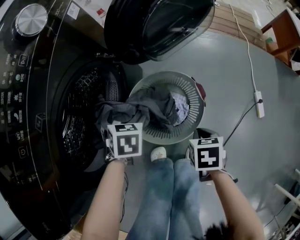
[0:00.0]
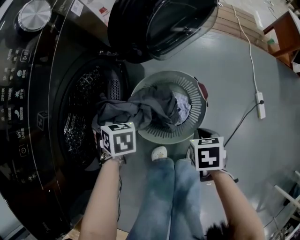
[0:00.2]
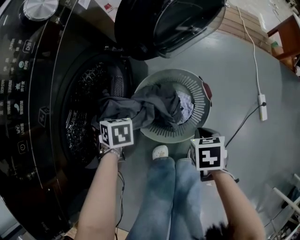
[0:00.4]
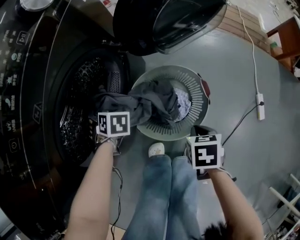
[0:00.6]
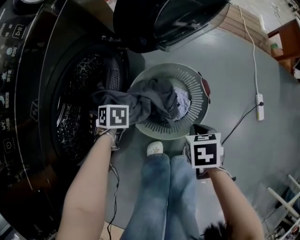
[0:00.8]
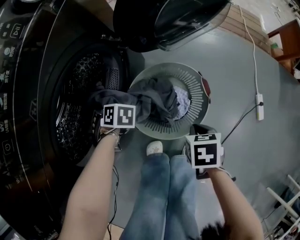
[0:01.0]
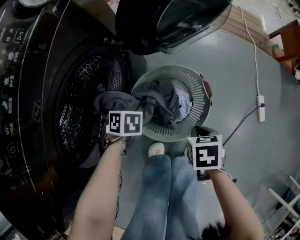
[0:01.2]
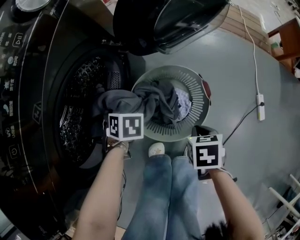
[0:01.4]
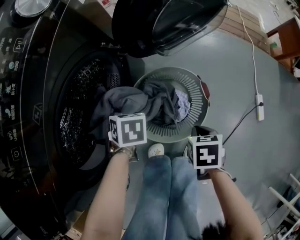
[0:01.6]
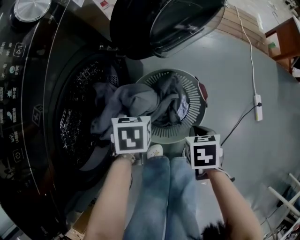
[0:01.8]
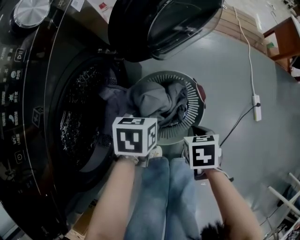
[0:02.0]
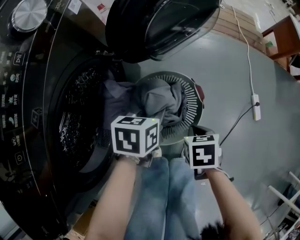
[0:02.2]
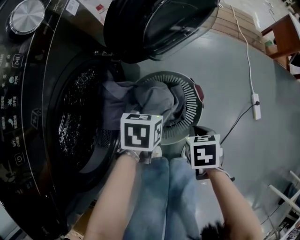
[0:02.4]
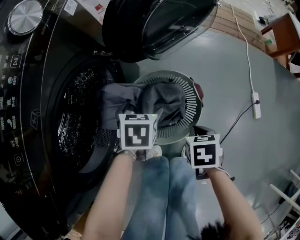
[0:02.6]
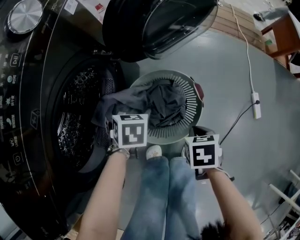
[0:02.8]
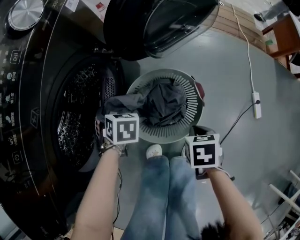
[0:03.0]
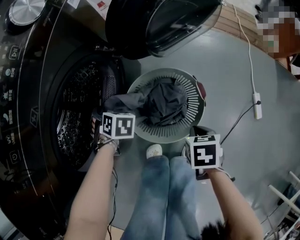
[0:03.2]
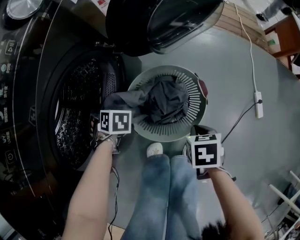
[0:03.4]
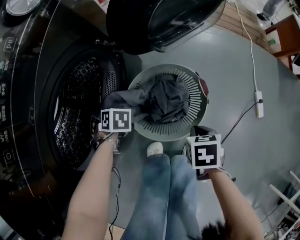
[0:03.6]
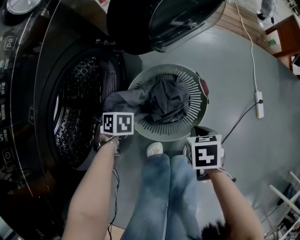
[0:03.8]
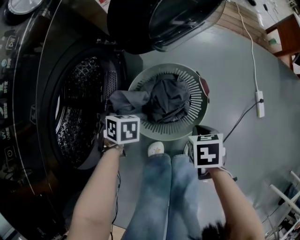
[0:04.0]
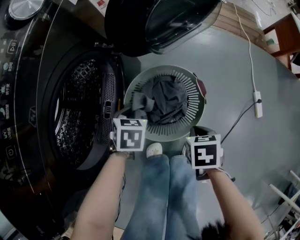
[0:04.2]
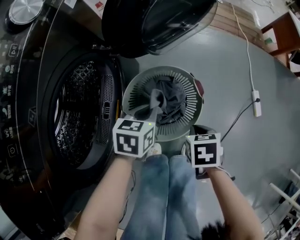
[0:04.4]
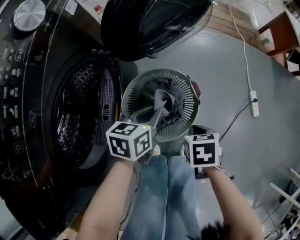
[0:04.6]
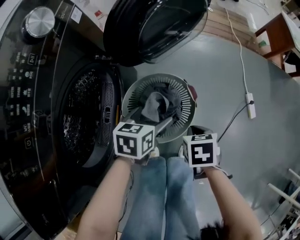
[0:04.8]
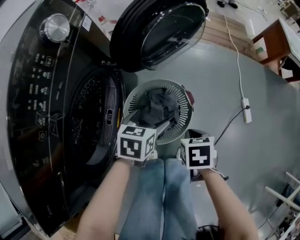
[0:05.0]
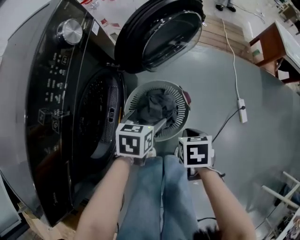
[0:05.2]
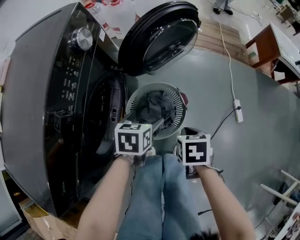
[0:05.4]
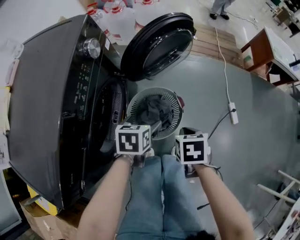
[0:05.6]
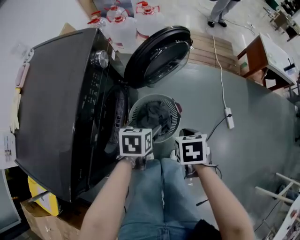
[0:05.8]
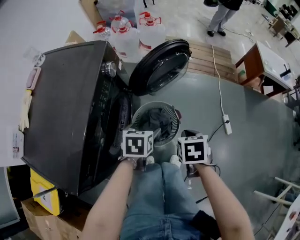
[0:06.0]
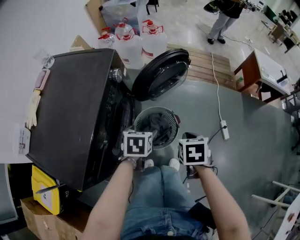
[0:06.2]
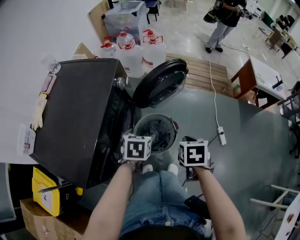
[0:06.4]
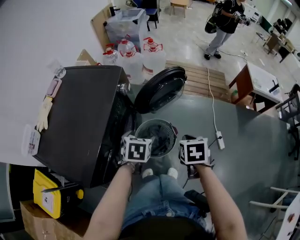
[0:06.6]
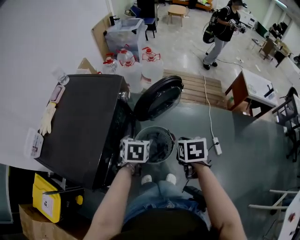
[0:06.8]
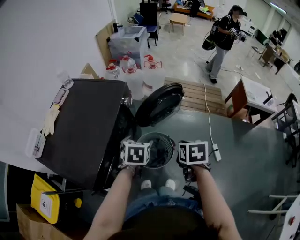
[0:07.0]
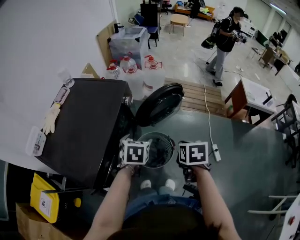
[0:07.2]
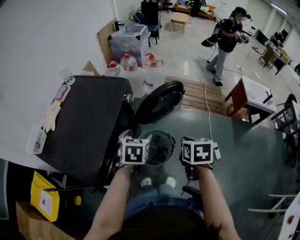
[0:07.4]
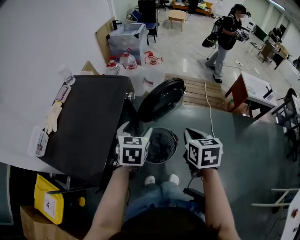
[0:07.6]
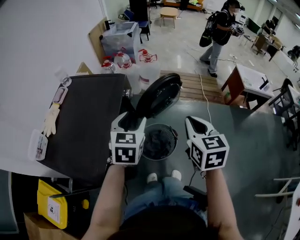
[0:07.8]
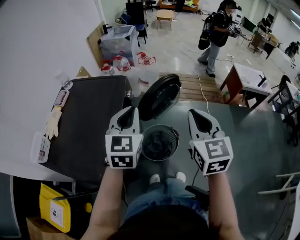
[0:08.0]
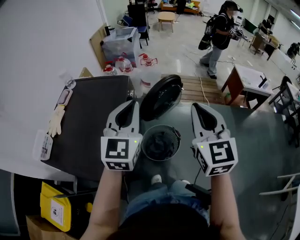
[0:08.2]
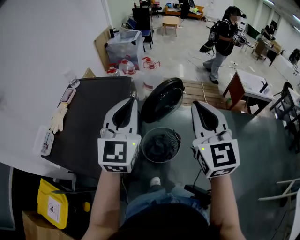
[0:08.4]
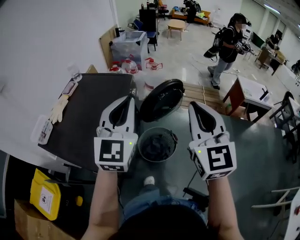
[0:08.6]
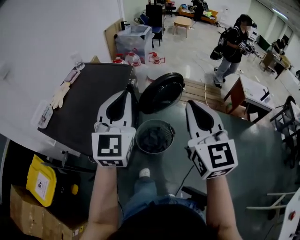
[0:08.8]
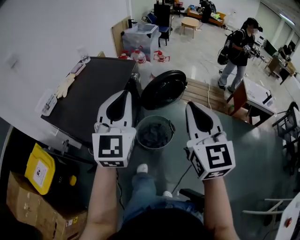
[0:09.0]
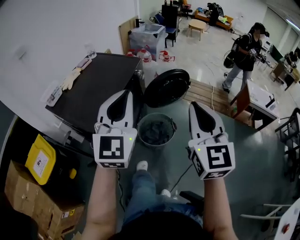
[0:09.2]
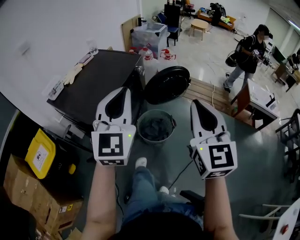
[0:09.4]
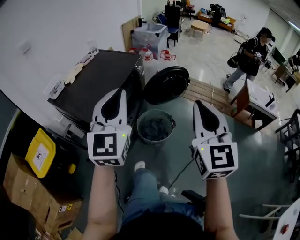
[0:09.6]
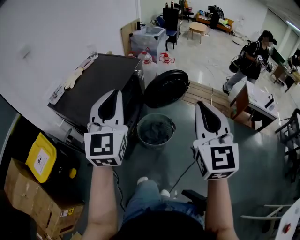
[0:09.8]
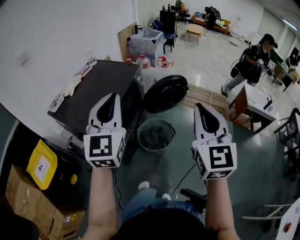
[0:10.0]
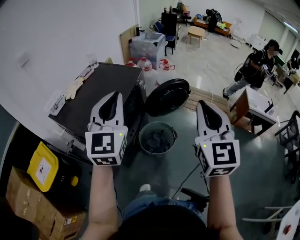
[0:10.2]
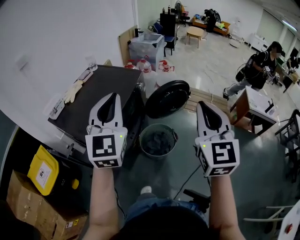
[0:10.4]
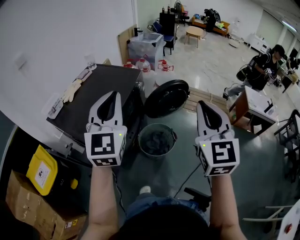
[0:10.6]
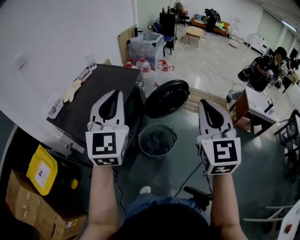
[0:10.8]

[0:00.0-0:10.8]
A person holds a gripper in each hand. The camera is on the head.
0:00.0 to 0:01.6: The left gripper reaches approximately 10 cm downward, then returns, and closes its fingers.
0:01.6 to 0:03.0: The left gripper opens up.
0:03.0 to 0:04.6: The left gripper ends up approximately 20 cm from where it was, swivels about 50 degrees, and closes up.
0:04.6 to 0:06.2: Both grippers move upward, approximately 30 cm. The left gripper changes its angle by about 20 degrees, and opens.
0:06.2 to 0:07.8: The two grippers go about 25 cm upward. The right gripper tips its fingers upward by roughly 40 degrees, while the left gripper tilts its fingers roughly 30 degrees upward.
0:07.8 to 0:09.2: Both grippers travel together backward and upward, roughly 25 cm. The left gripper angles its fingers upward, by approximately 30 degrees, and closes, while the right gripper changes its angle by some 30 degrees.
0:09.2 to 0:10.8: The left gripper shifts by roughly 5 cm, while the right gripper changes place by approximately 5 cm.

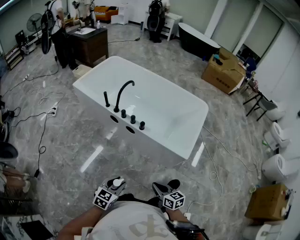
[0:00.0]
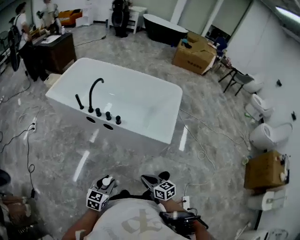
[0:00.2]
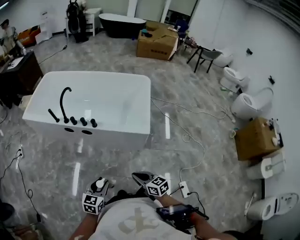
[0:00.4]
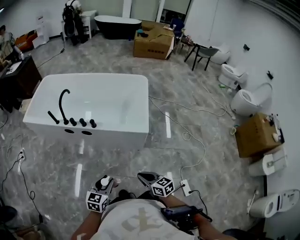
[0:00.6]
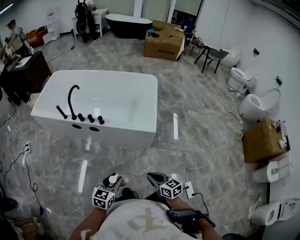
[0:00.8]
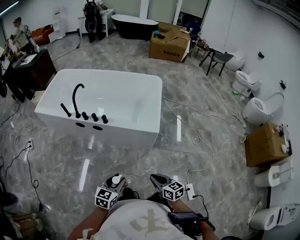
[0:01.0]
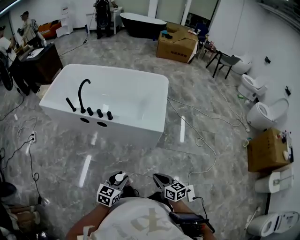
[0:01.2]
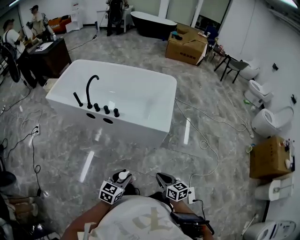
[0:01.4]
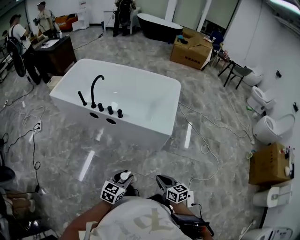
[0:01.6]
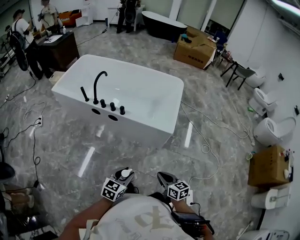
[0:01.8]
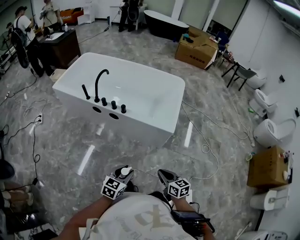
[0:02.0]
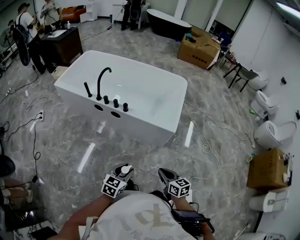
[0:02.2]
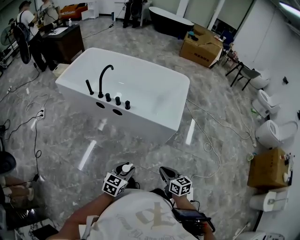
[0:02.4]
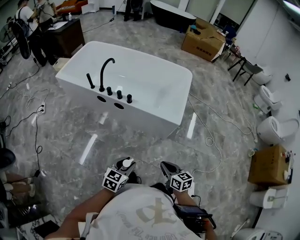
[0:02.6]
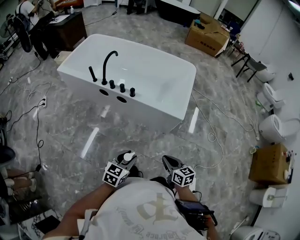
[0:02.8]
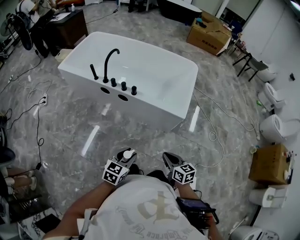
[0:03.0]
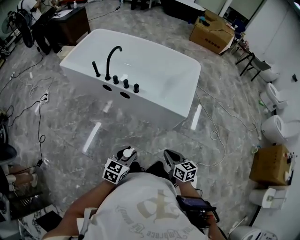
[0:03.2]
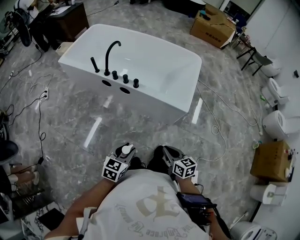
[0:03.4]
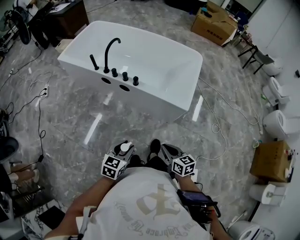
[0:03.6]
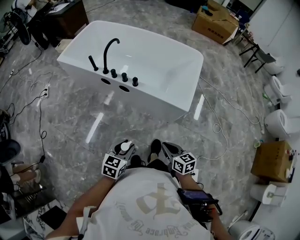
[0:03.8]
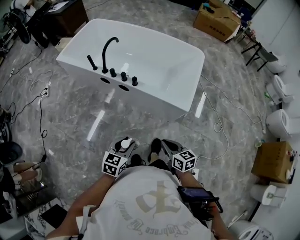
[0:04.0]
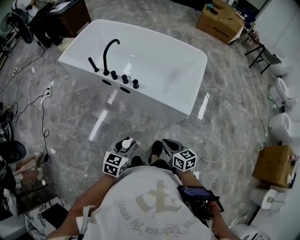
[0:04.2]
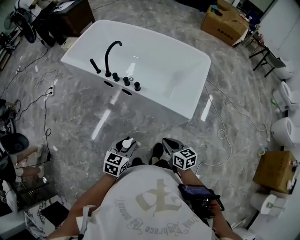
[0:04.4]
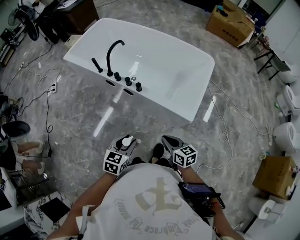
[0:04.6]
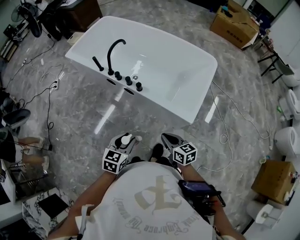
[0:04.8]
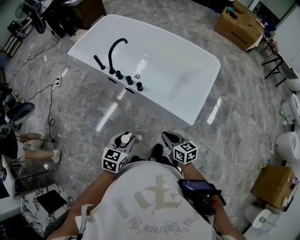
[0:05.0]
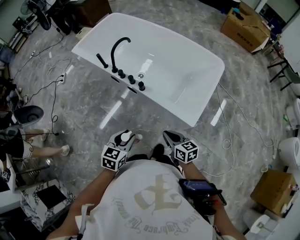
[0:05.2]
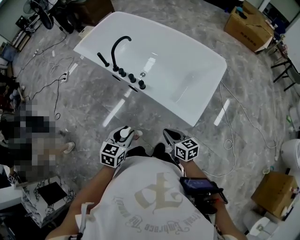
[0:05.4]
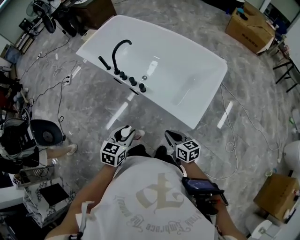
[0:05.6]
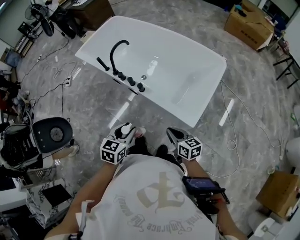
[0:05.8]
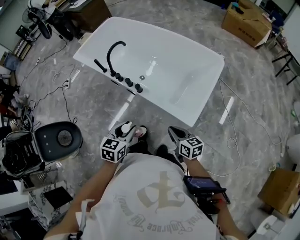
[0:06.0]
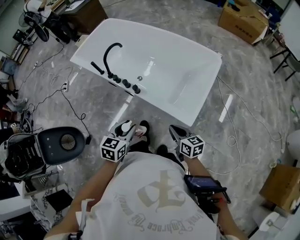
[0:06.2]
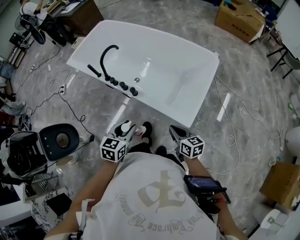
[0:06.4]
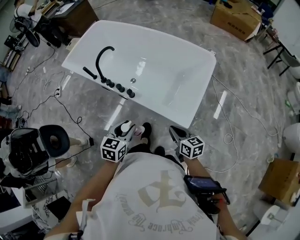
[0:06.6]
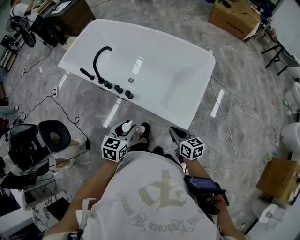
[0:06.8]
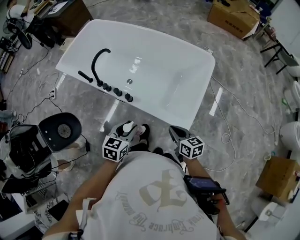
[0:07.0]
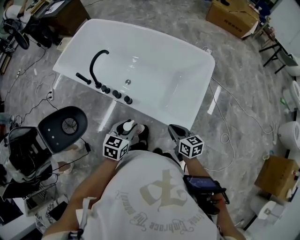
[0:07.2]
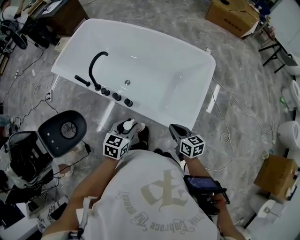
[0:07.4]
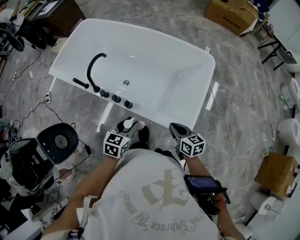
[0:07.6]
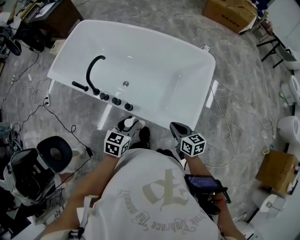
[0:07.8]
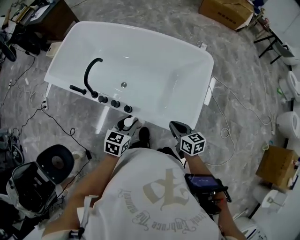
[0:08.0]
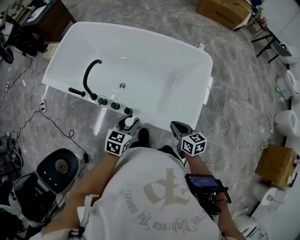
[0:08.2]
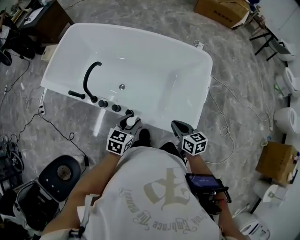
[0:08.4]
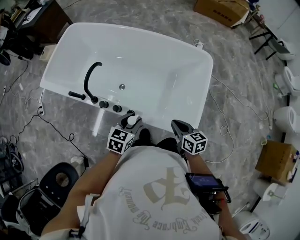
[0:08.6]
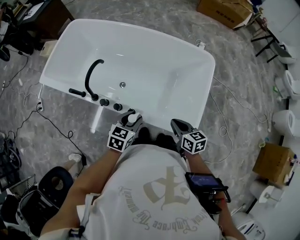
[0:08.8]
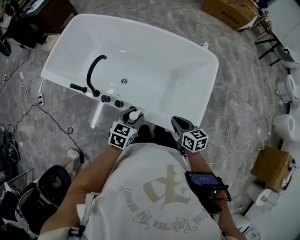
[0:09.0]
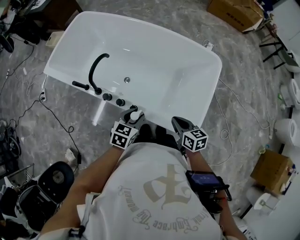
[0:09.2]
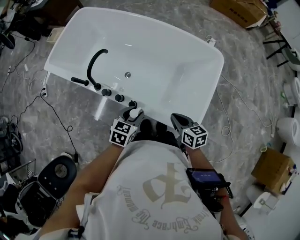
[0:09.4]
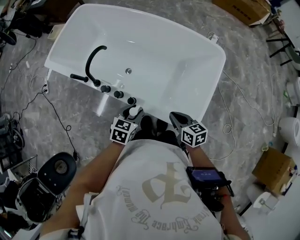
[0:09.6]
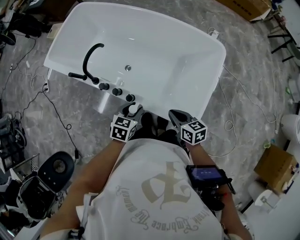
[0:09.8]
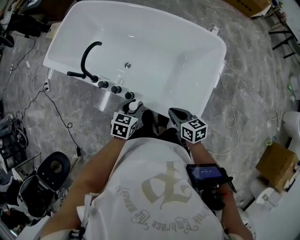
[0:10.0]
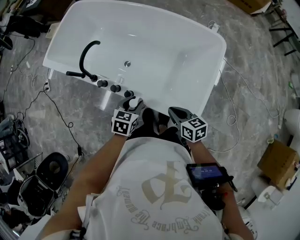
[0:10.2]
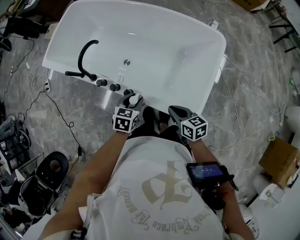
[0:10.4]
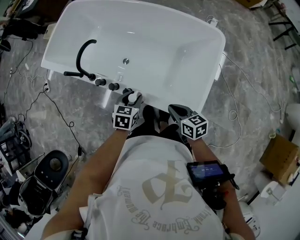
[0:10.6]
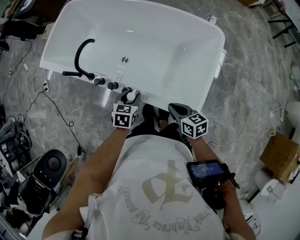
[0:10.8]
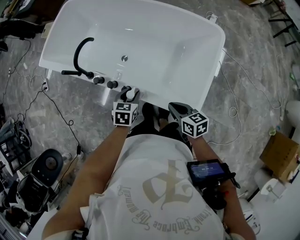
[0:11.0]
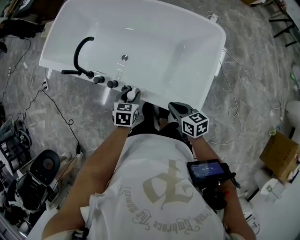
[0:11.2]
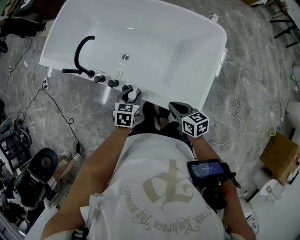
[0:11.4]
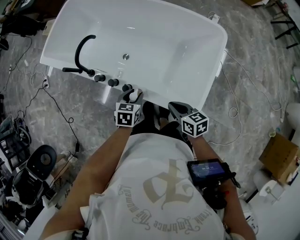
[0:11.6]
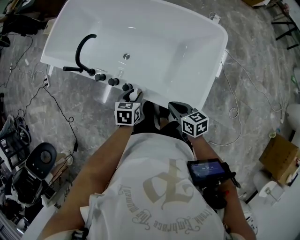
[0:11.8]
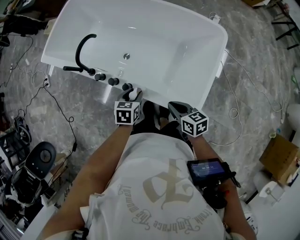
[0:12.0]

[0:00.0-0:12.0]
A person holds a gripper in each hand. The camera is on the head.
0:00.0 to 0:01.6: The two grippers go some 15 cm to the right and backward.
0:01.6 to 0:03.0: The grippers both shift to the left by approximately 5 cm.
0:03.0 to 0:04.4: Both grippers travel together forward, roughly 10 cm.
0:04.4 to 0:06.0: The left gripper shifts about 15 cm forward and to the right. Meanwhile the right gripper shifts about 15 cm to the right and forward.
0:06.0 to 0:07.6: Both grippers travel together forward, roughly 20 cm.
0:07.6 to 0:09.0: Both grippers move forward, approximately 10 cm.
0:09.0 to 0:10.4: The left gripper moves downward, some 5 cm.
0:10.4 to 0:12.0: There are only small adjustments of the grippers.

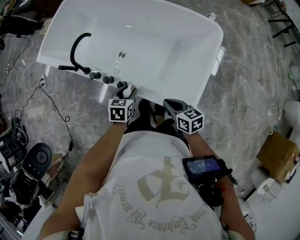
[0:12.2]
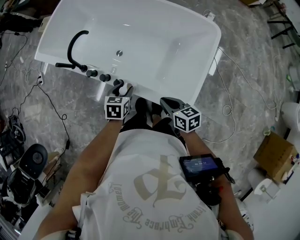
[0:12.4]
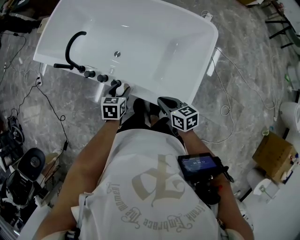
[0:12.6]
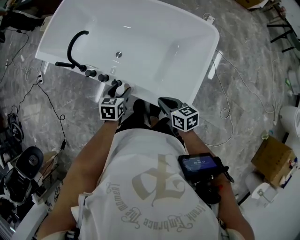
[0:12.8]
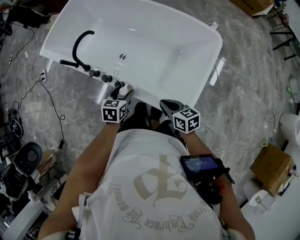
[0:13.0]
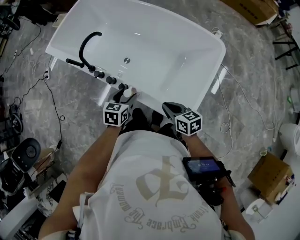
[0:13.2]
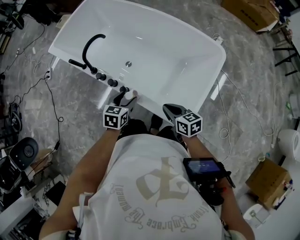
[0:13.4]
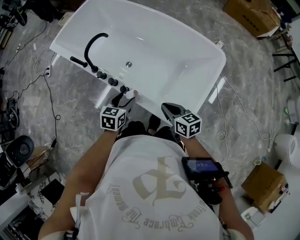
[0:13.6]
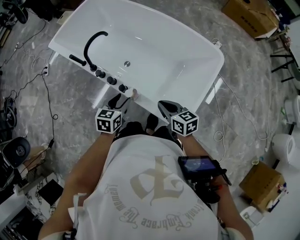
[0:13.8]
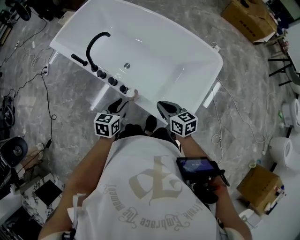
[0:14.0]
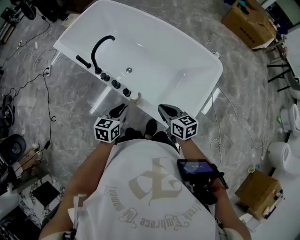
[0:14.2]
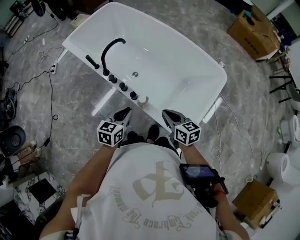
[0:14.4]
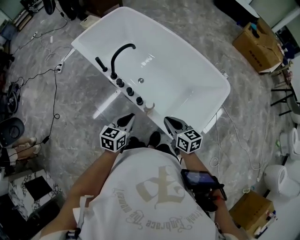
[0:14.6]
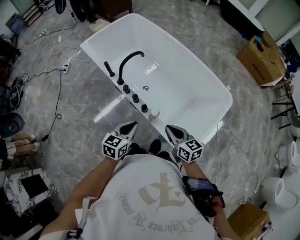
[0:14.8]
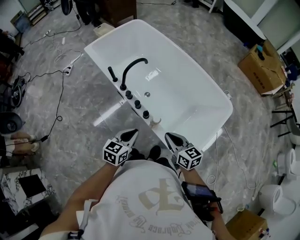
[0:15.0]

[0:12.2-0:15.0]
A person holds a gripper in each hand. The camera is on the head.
0:12.2 to 0:13.6: The left gripper ends up roughly 5 cm from where it was.
0:13.6 to 0:15.0: The right gripper is displaced to the left and upward by about 15 cm; the left gripper moves to the left, upward and backward, approximately 15 cm, and closes its fingers.
